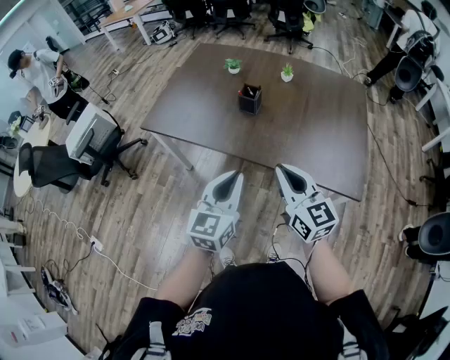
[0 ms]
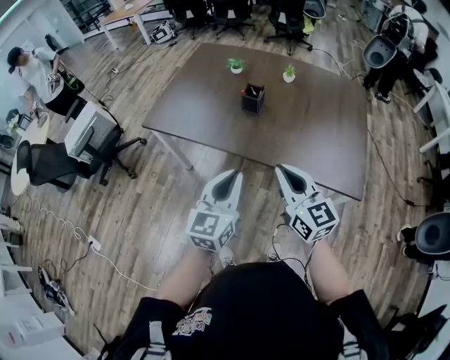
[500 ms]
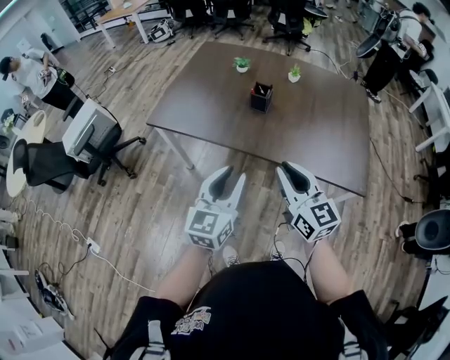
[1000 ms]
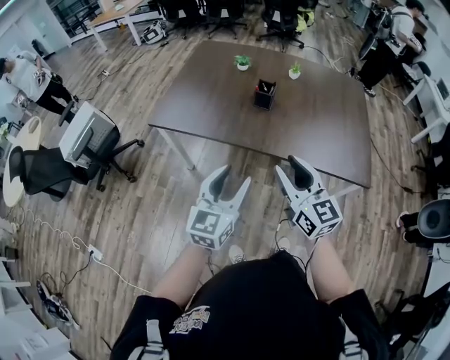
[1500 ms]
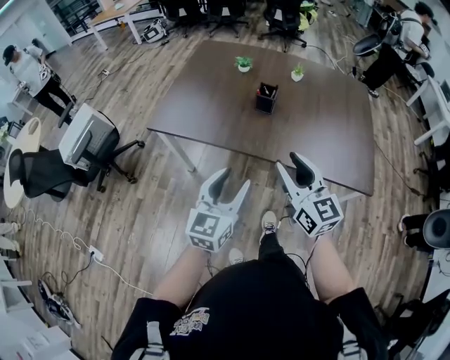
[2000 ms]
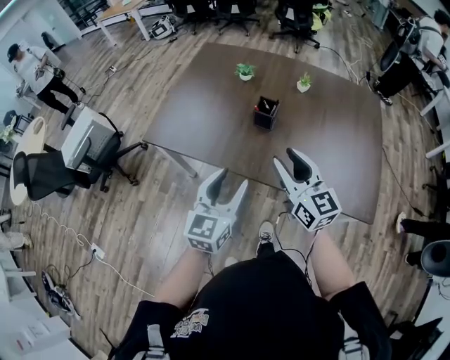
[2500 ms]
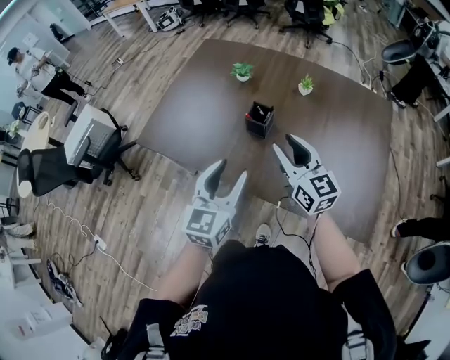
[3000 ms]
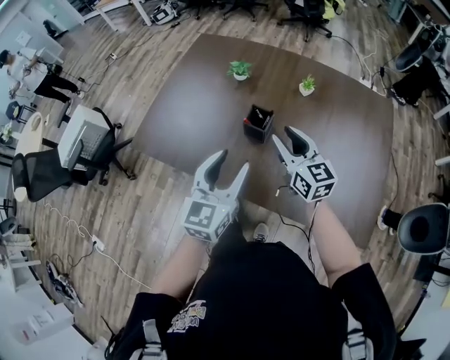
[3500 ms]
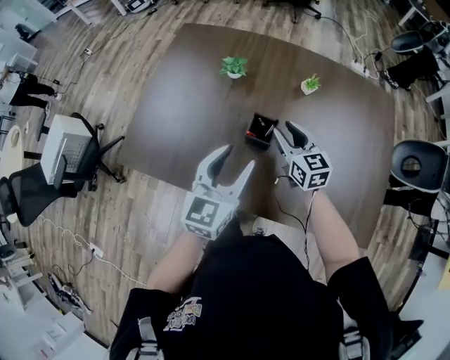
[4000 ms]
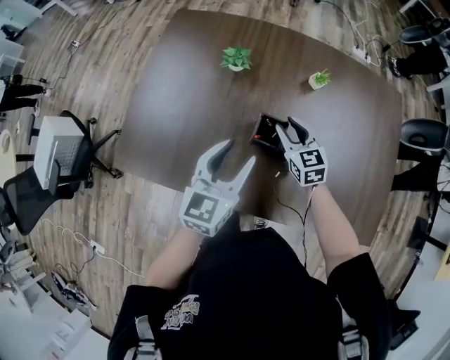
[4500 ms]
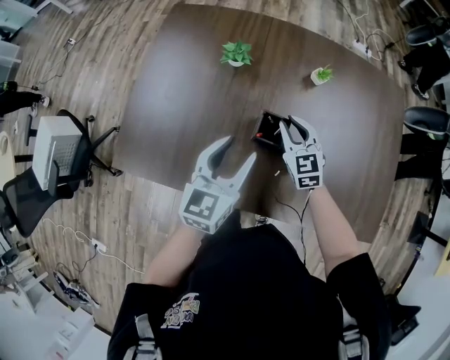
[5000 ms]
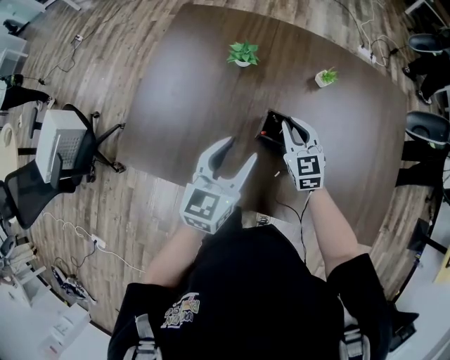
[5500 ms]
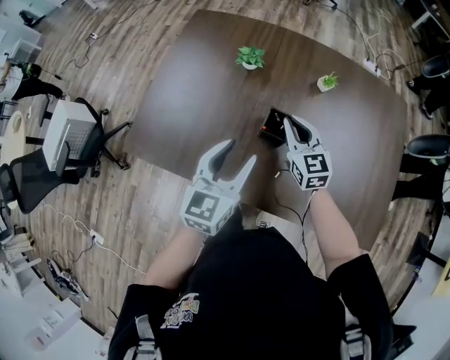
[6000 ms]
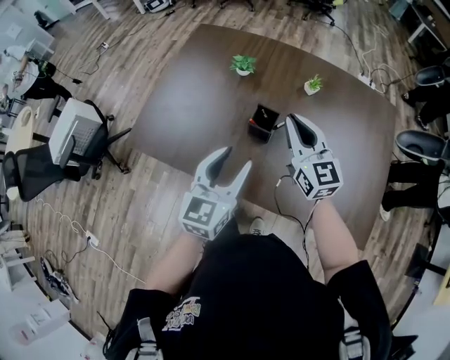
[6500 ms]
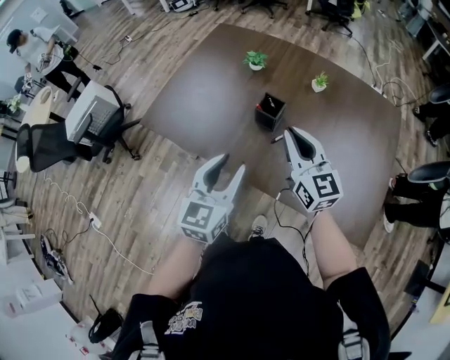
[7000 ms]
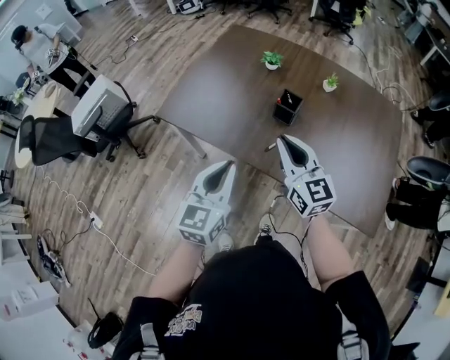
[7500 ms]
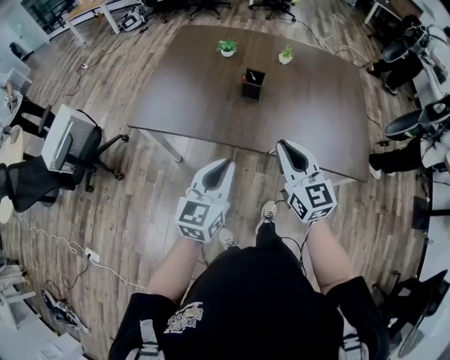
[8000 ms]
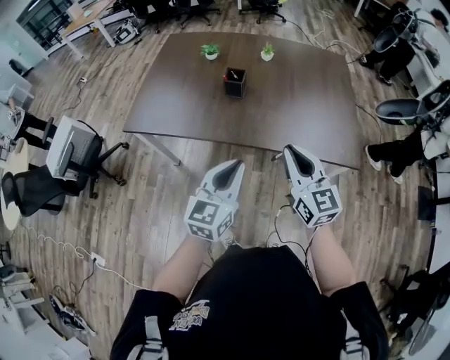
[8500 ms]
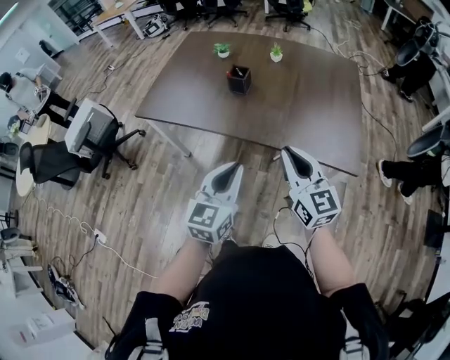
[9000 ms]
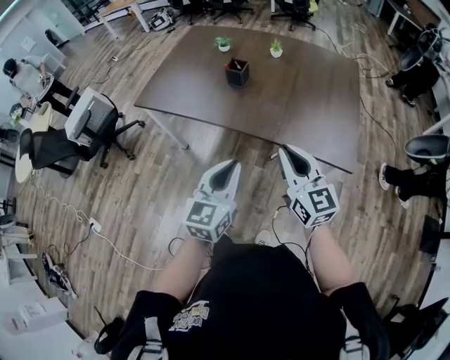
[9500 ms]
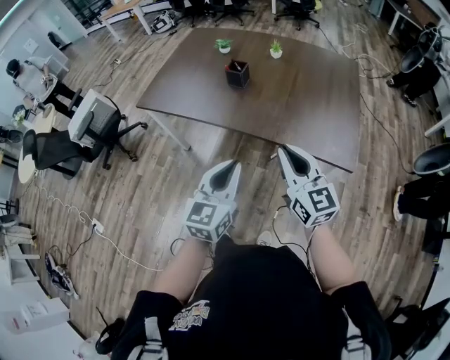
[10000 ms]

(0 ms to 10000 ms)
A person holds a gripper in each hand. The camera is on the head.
0 ms - 2000 ms: Both grippers move to the left, about 10 cm. The left gripper opens up; the right gripper opens up.
2000 ms - 4000 ms: The right gripper goes some 50 cm forward and downward. Meanwhile the left gripper heads forward, covering roughly 35 cm.
4000 ms - 6000 ms: The right gripper closes up.
6000 ms - 8000 ms: The two grippers go roughly 35 cm backward. The left gripper closes.
8000 ms - 10000 ms: The two grippers go some 25 cm to the right and backward.

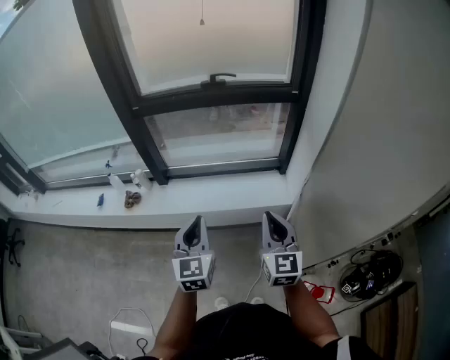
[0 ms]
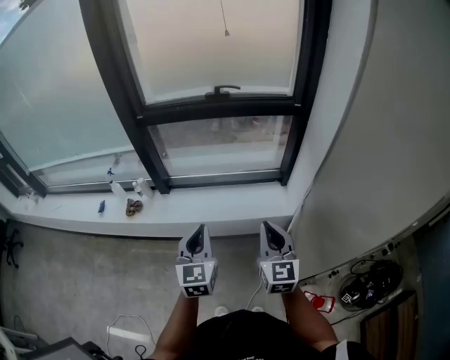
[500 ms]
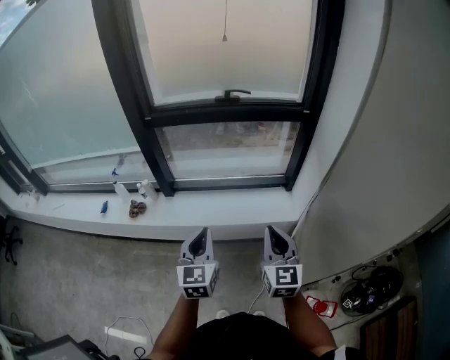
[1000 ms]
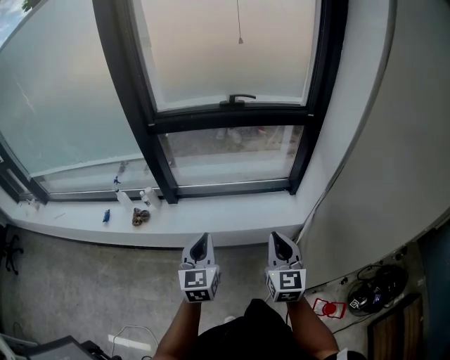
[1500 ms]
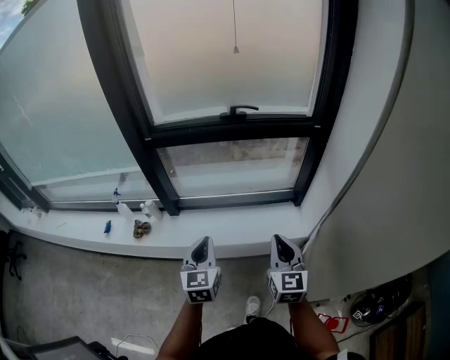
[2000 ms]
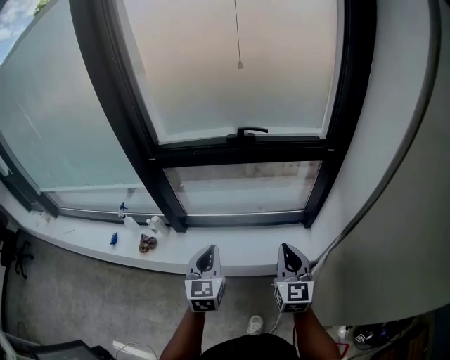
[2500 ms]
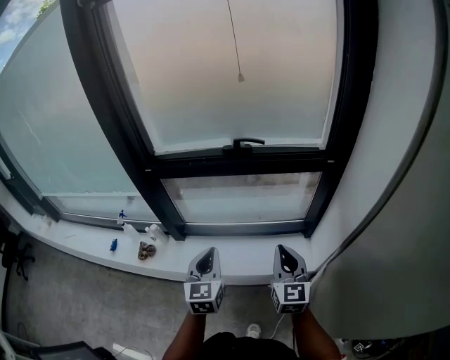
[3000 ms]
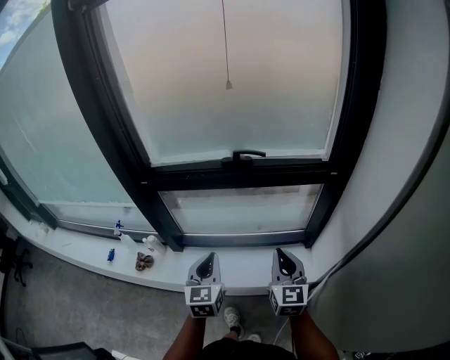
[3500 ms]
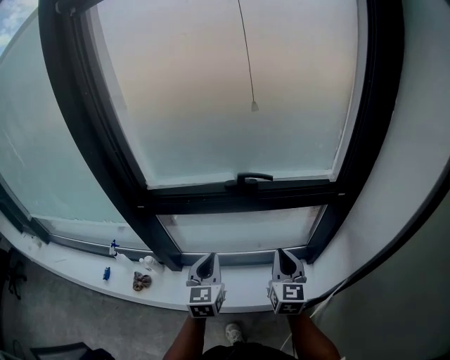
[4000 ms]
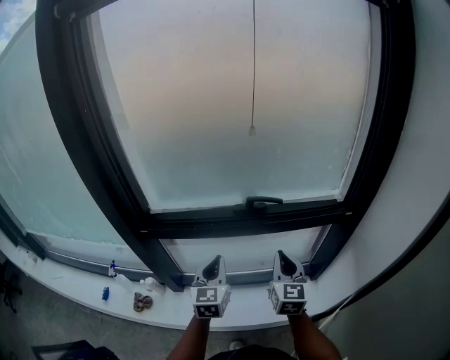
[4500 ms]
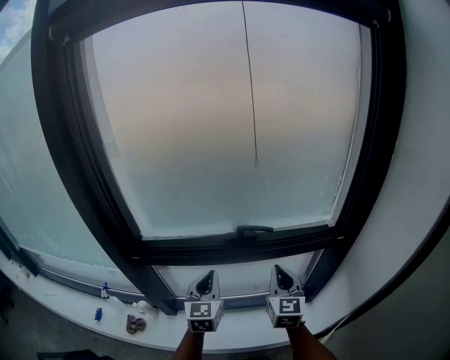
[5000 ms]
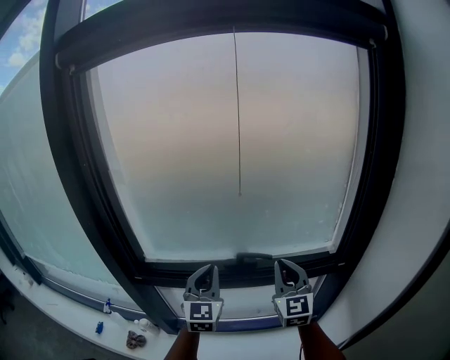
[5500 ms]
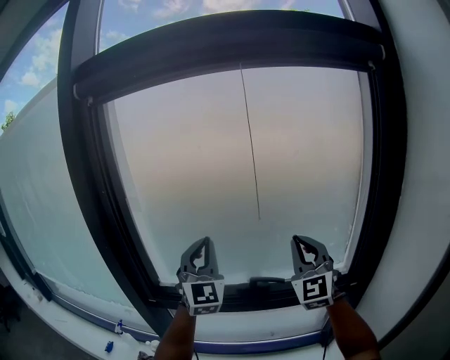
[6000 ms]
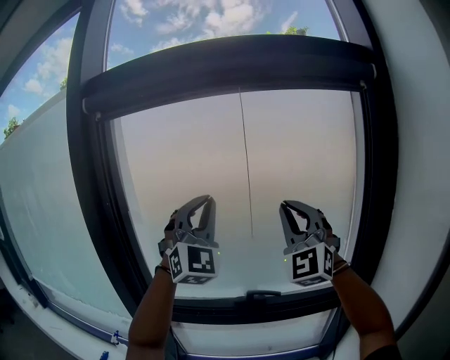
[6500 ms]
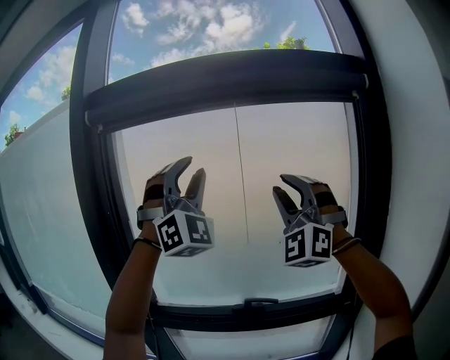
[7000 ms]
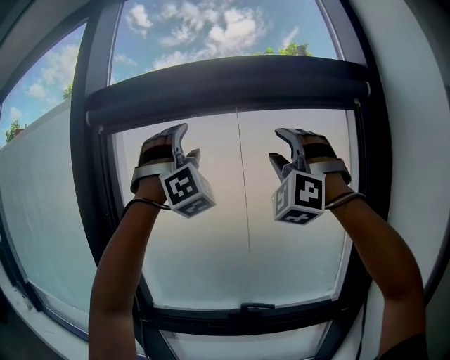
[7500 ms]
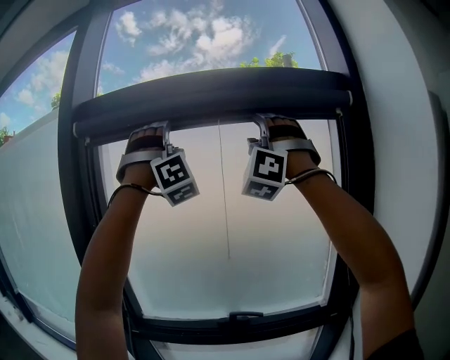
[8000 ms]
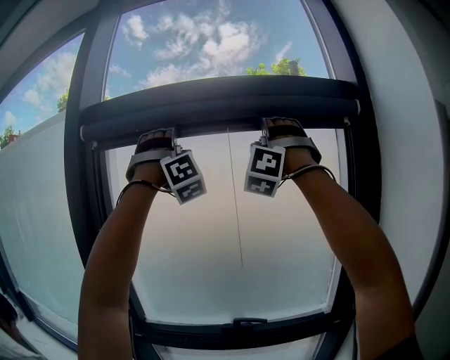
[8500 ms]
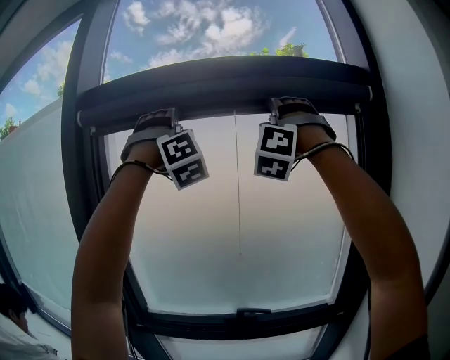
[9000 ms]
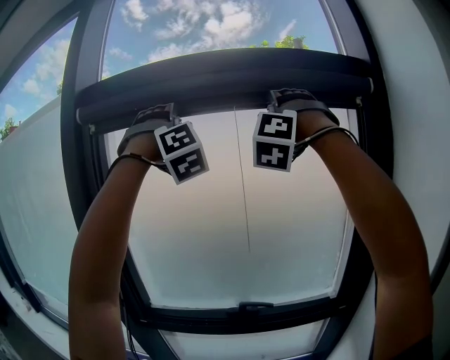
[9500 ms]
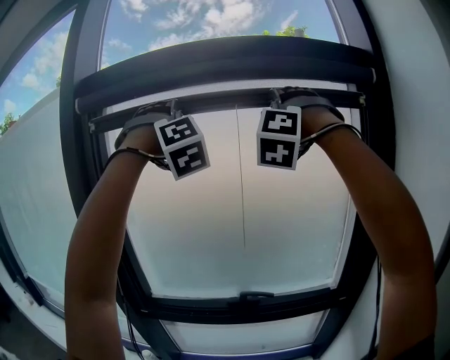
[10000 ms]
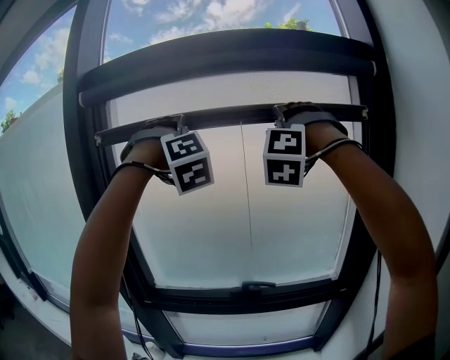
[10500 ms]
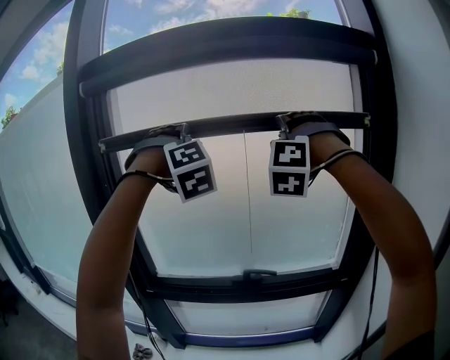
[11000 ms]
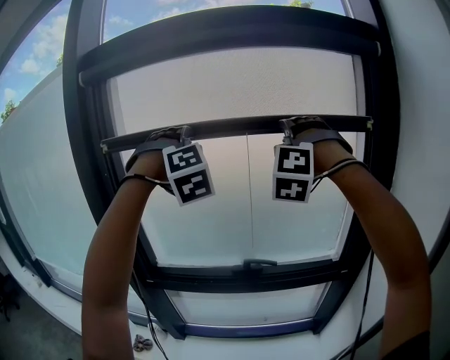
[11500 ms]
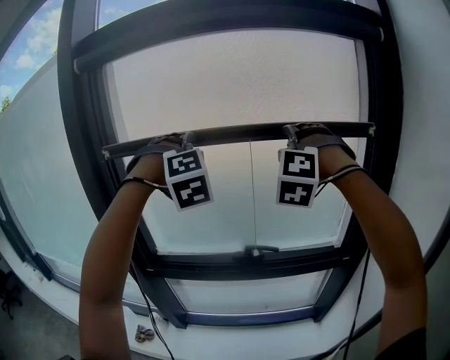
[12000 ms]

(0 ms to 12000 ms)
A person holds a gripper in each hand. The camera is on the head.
0 ms - 2000 ms: Both grippers move forward and to the left, approximately 10 cm.
2000 ms - 4000 ms: Both grippers travel together forward, roughly 25 cm.
4000 ms - 6000 ms: Both grippers move upward and forward, roughly 35 cm. The left gripper tips its fingers upward by approximately 30 degrees, while the right gripper swivels approximately 40 degrees.
6000 ms - 8000 ms: The two grippers go roughly 40 cm upward. The right gripper twists about 60 degrees counterclockwise, seen from behind, and opens its fingers, while the left gripper twists roughly 70 degrees clockwise, seen from behind, and opens.
8000 ms - 10000 ms: The right gripper rotates about 20 degrees. Meanwhile the left gripper rotates roughly 20 degrees.
10000 ms - 12000 ms: Both grippers travel together downward, roughly 20 cm. The left gripper turns by approximately 20 degrees.

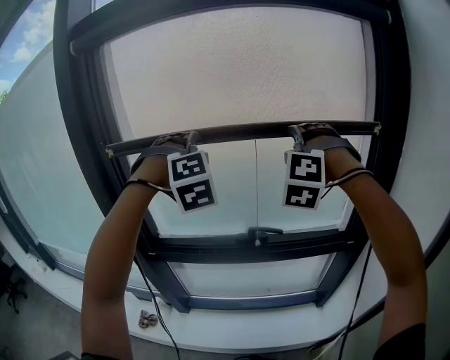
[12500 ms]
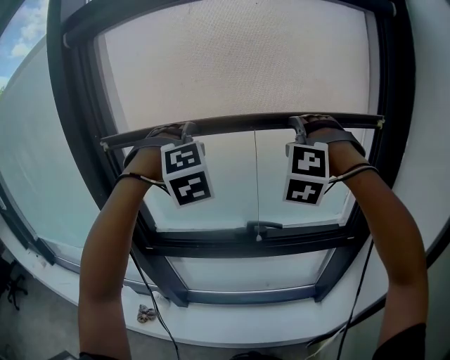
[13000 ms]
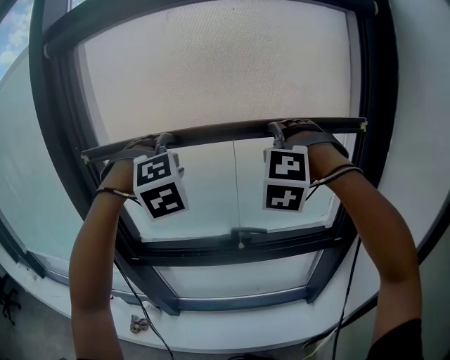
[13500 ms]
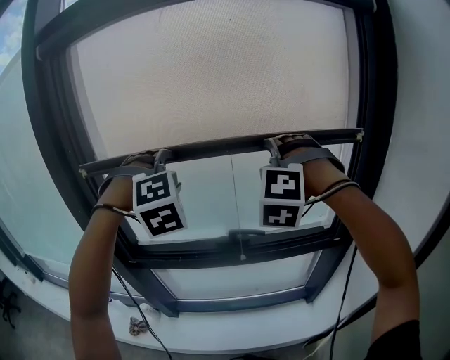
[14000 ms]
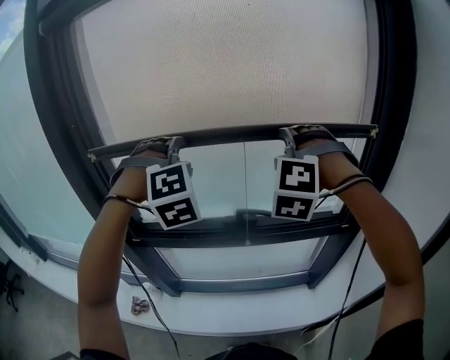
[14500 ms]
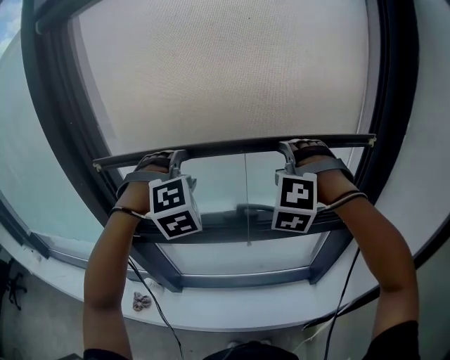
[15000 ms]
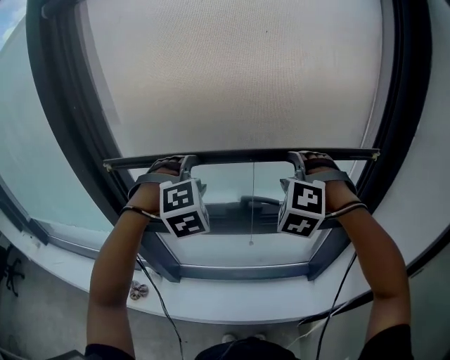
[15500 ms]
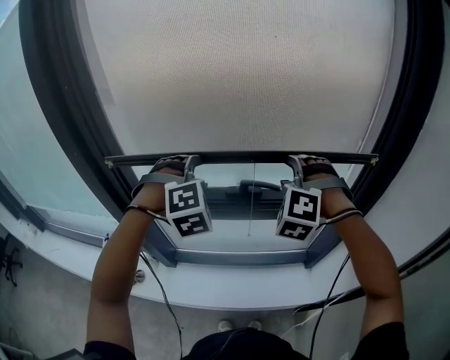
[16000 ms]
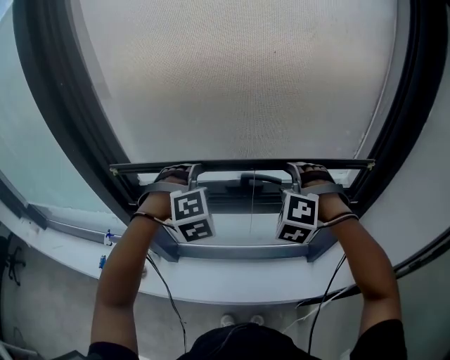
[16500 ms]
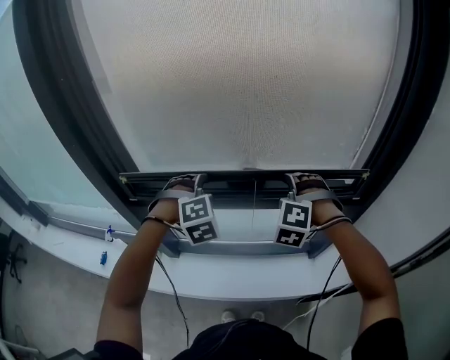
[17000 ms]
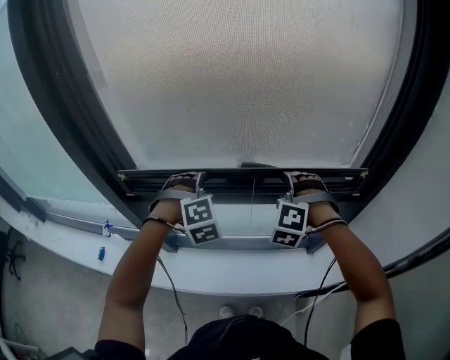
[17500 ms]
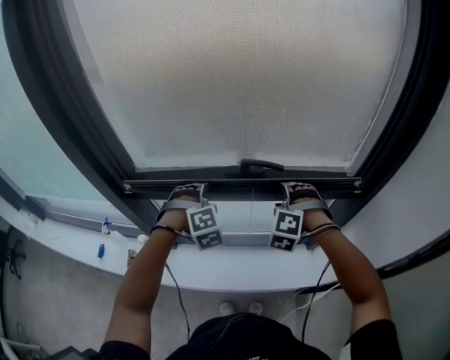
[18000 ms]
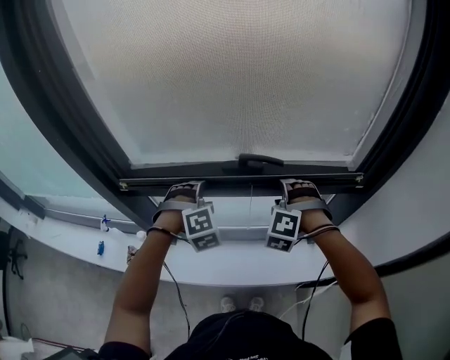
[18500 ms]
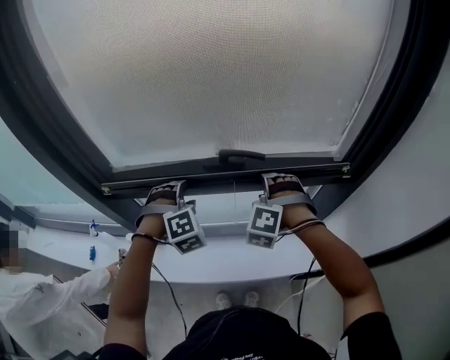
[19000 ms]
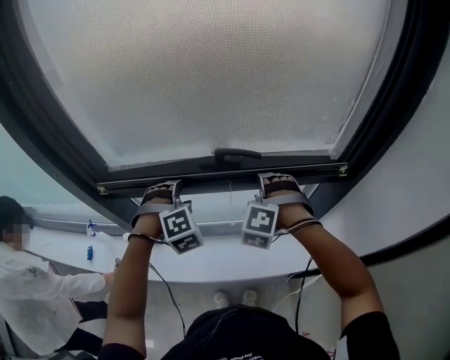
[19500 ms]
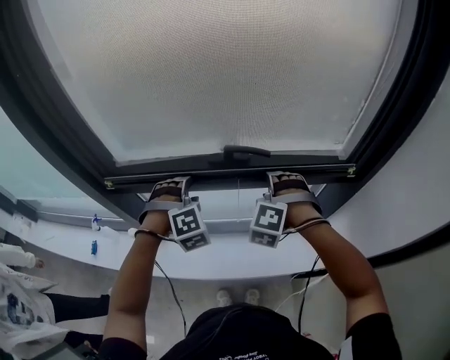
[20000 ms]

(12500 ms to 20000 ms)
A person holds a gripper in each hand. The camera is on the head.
12500 ms - 14500 ms: Both grippers travel together downward, roughly 5 cm.
14500 ms - 16500 ms: The two grippers go approximately 20 cm downward.
16500 ms - 18000 ms: The grippers both shift downward by roughly 15 cm.
18000 ms - 20000 ms: There are only small adjustments of the grippers.
